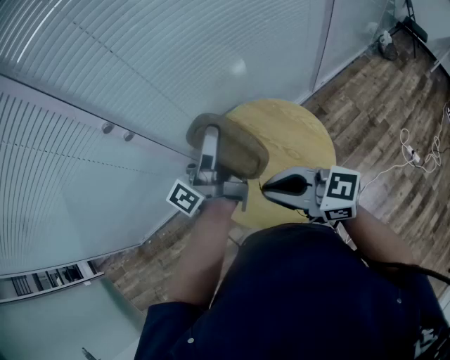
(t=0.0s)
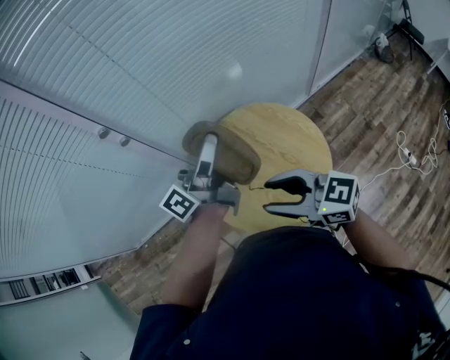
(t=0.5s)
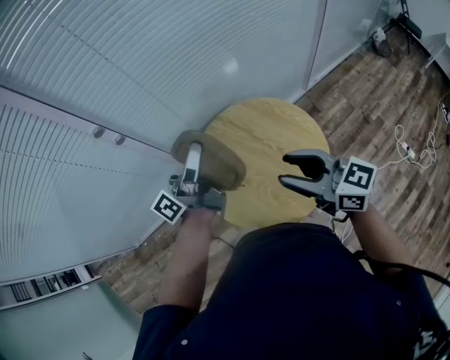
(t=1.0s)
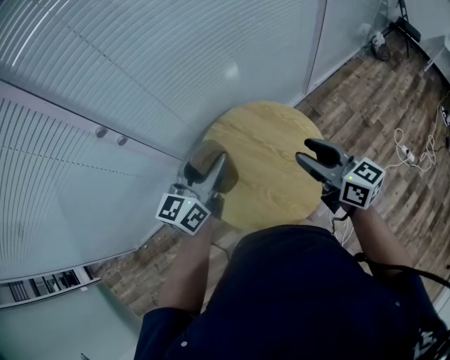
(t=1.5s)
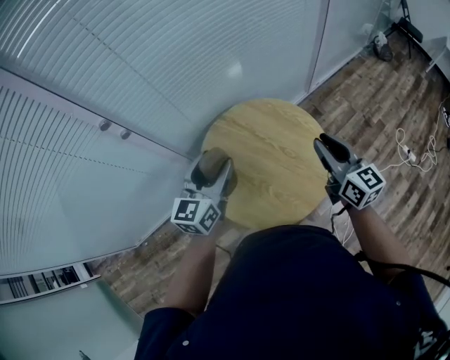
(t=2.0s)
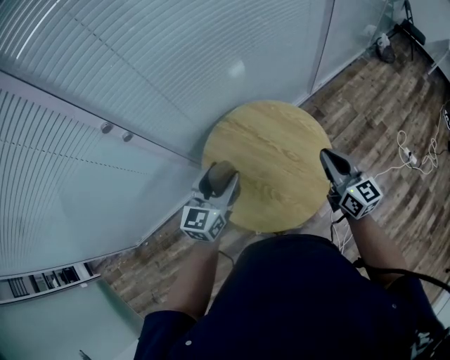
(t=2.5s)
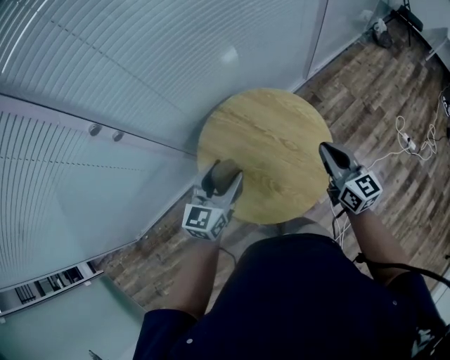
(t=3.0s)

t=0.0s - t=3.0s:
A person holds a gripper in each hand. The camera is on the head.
t=0.0s - t=1.5s: The right gripper moves to the right, about 15 cm, turns by approximately 30 degrees, and opens its fingers. The left gripper is displaced downward by about 10 cm, and tips its fingers downward by roughly 30 degrees.
t=1.5s - t=3.0s: The right gripper heads downward and to the right, covering about 10 cm, and closes up, while the left gripper heads downward, covering approximately 10 cm.

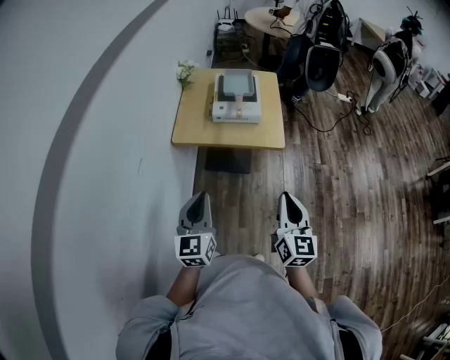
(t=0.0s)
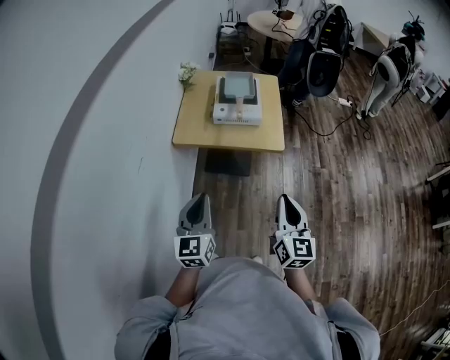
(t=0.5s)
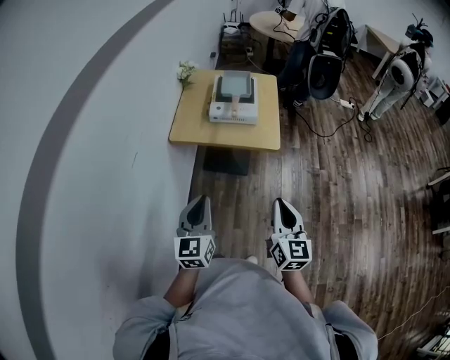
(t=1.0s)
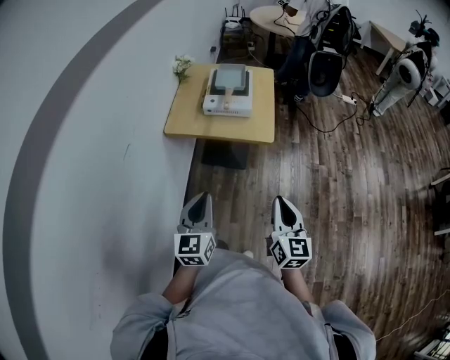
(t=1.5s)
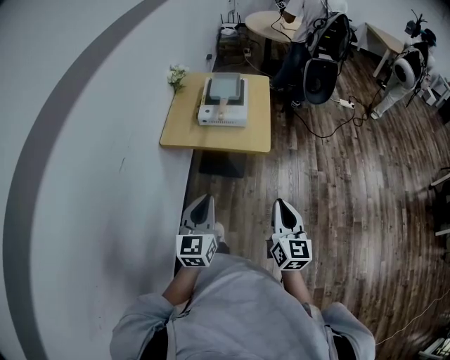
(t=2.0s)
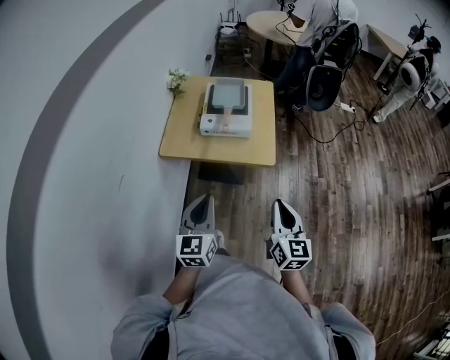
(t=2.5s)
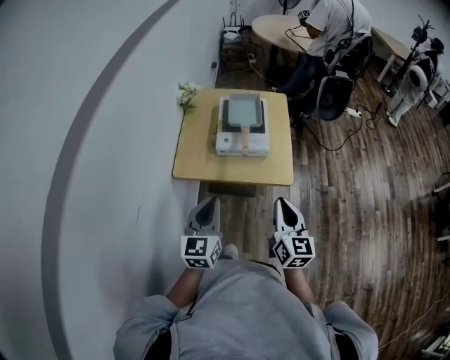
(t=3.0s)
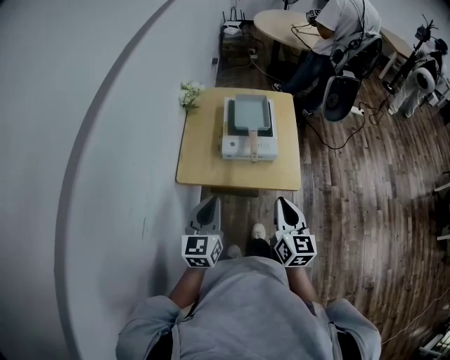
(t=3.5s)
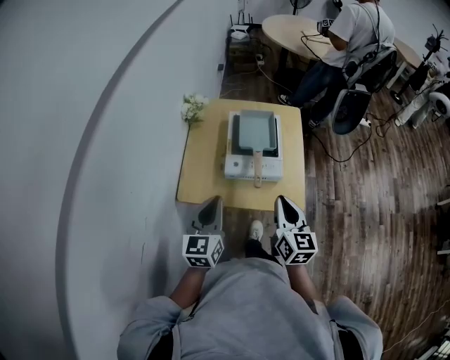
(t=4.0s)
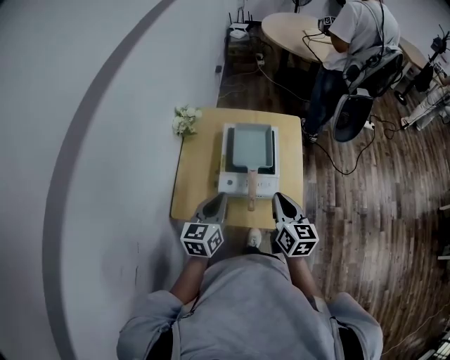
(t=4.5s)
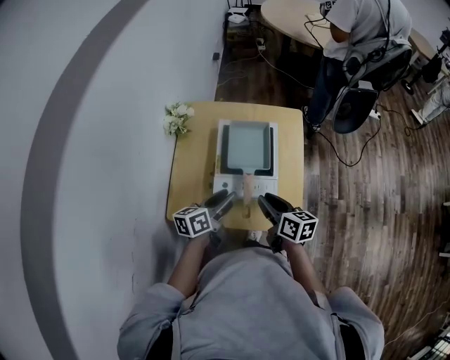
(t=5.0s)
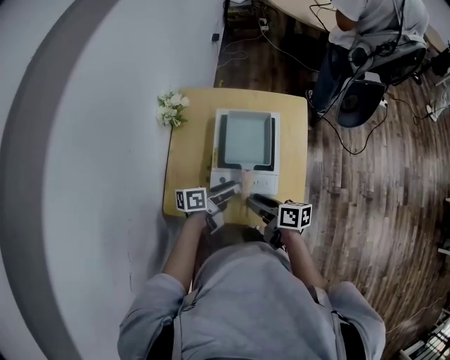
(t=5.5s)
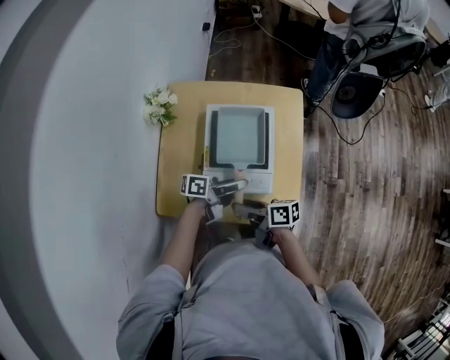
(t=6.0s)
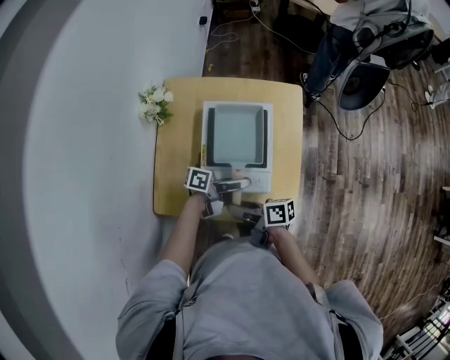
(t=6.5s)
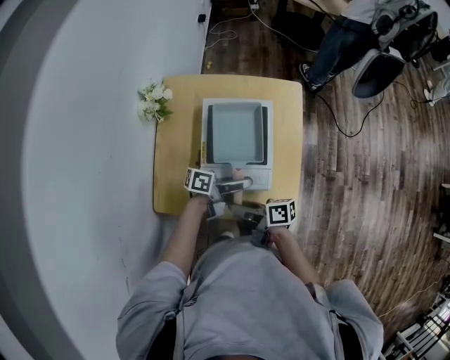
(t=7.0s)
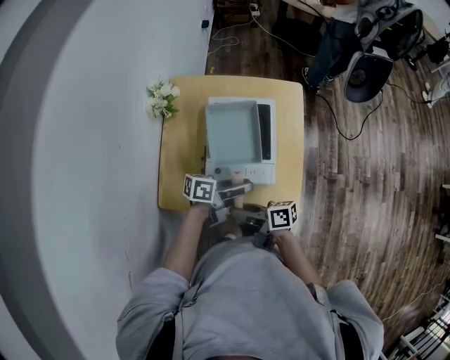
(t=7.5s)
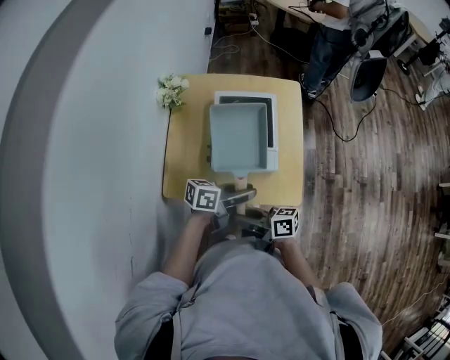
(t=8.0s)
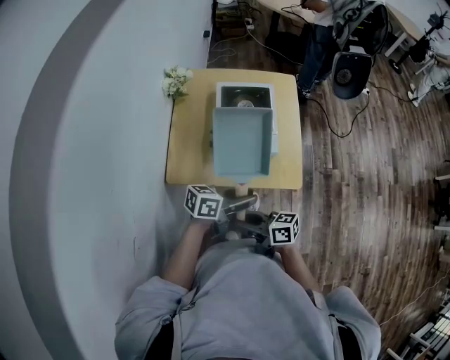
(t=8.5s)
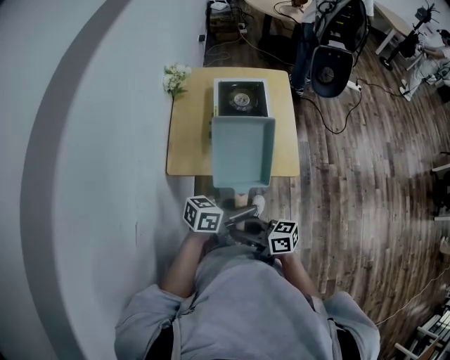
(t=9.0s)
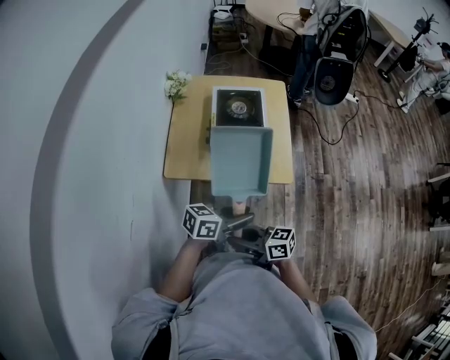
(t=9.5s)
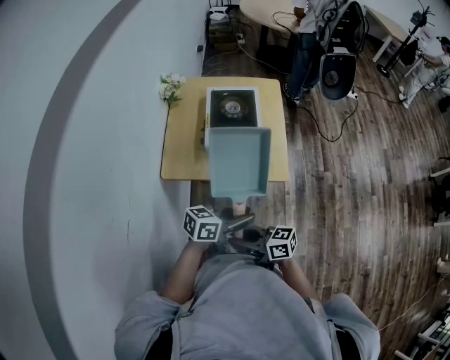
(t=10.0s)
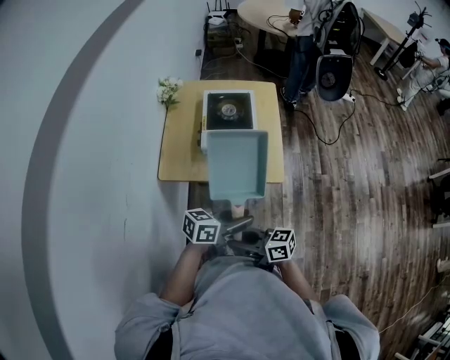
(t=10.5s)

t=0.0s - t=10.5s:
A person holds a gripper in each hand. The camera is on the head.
t=0.0s - t=2.0s: Both grippers move to the right, some 10 cm.
t=2.0s - t=4.0s: Both grippers move forward and to the left, some 35 cm.
t=4.0s - t=6.5s: The left gripper moves about 30 cm, rotates some 90 degrees, and opens; the right gripper shifts approximately 15 cm downward, rotates roughly 80 degrees, and opens.
t=6.5s - t=8.5s: The right gripper changes place by approximately 20 cm, and turns by about 20 degrees. Meanwhile the left gripper ends up some 25 cm from where it was, and rotates roughly 30 degrees.
t=8.5s - t=10.5s: The left gripper ends up some 15 cm from where it was; the right gripper moves roughly 15 cm.

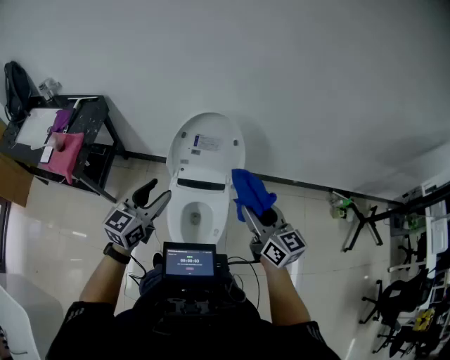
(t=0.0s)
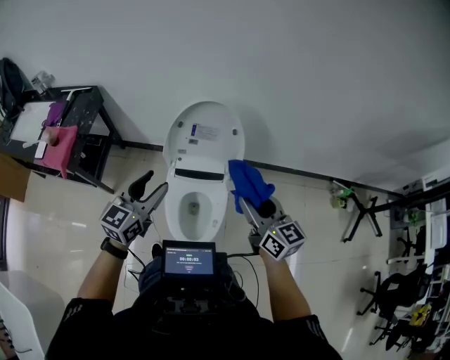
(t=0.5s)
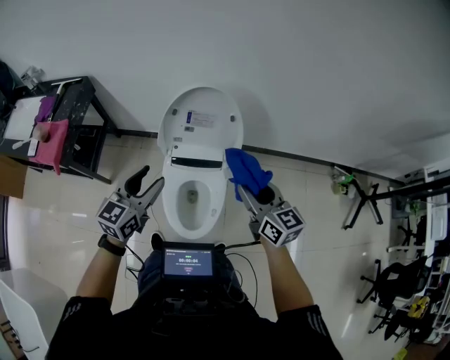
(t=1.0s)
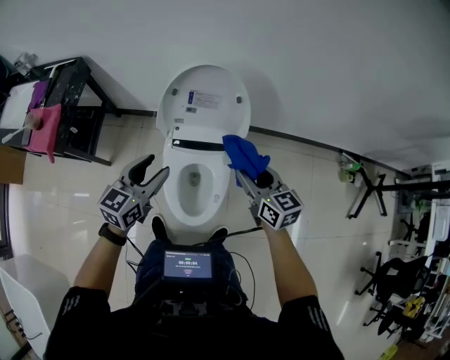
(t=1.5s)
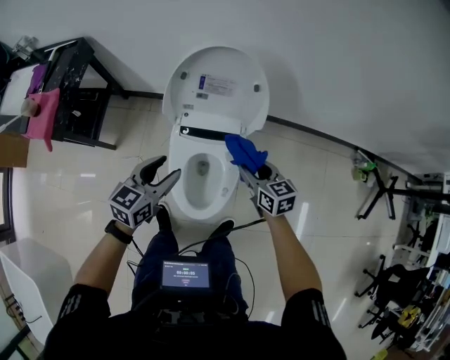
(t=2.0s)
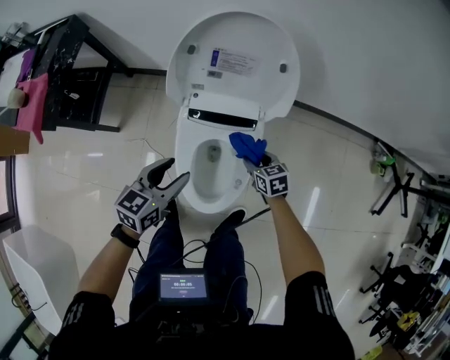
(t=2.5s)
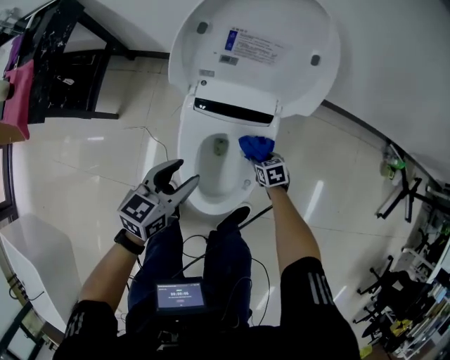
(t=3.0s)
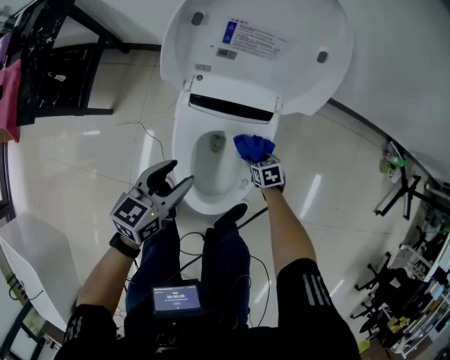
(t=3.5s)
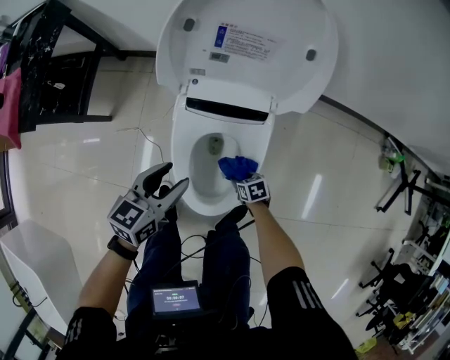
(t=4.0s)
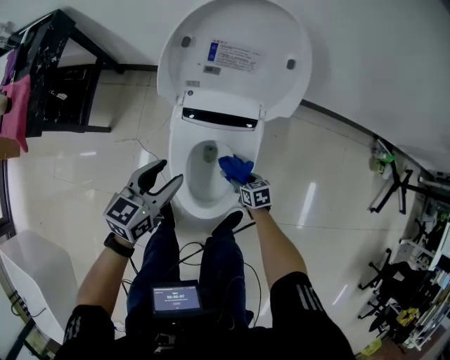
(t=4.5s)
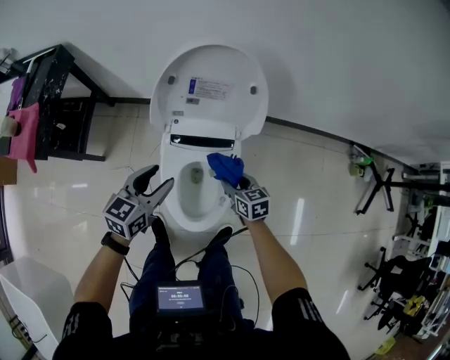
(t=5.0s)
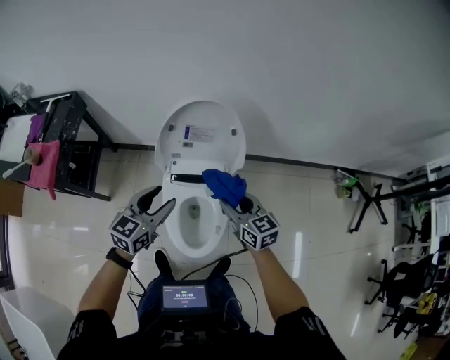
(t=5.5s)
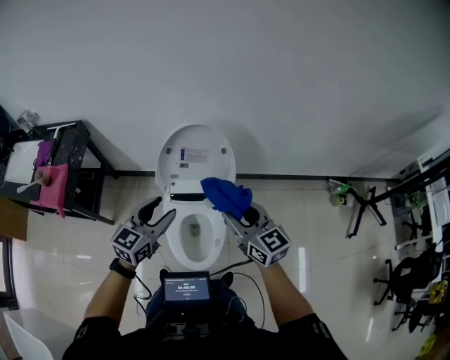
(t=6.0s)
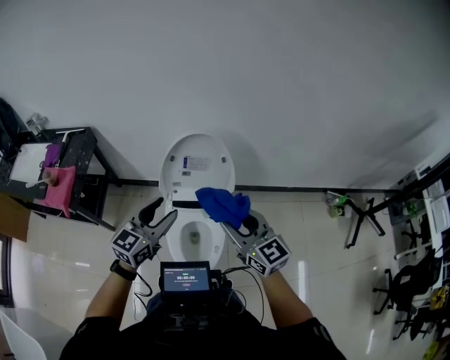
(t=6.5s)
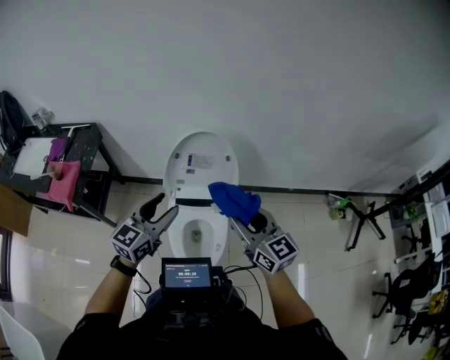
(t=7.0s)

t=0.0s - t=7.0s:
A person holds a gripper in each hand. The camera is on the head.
t=0.0s - t=2.0s: The right gripper heads downward, covering some 30 cm, and swivels approximately 30 degrees. The left gripper travels downward by some 20 cm.
t=2.0s - t=3.5s: The left gripper is displaced downward by some 20 cm. The right gripper moves downward, some 40 cm, and tilts its fingers approximately 40 degrees downward.
t=3.5s - t=5.0s: The right gripper goes about 25 cm upward, and changes its angle by some 30 degrees; the left gripper moves upward, roughly 10 cm.
t=5.0s - t=7.0s: The right gripper is displaced upward by roughly 50 cm, and tilts its fingers roughly 40 degrees upward. The left gripper moves upward, approximately 30 cm, and turns by some 20 degrees.

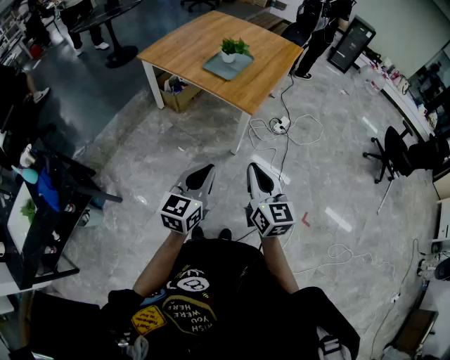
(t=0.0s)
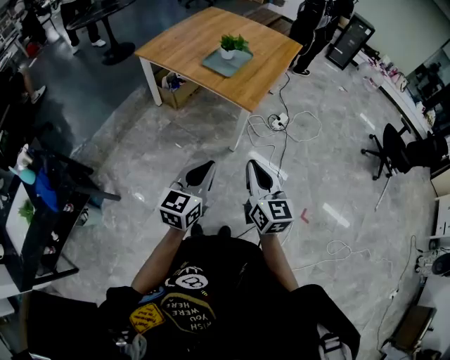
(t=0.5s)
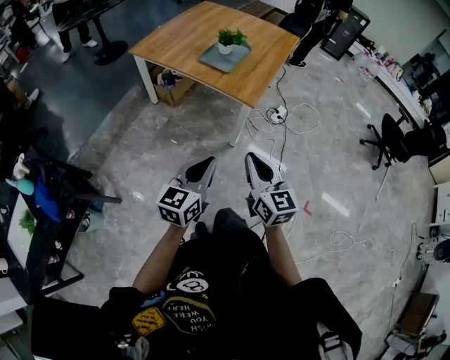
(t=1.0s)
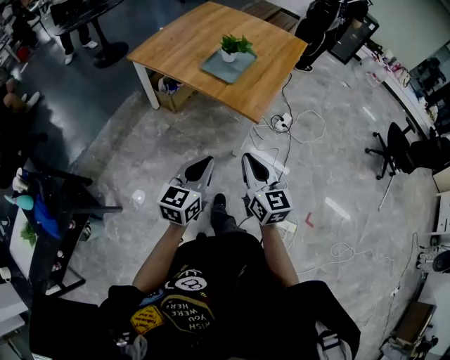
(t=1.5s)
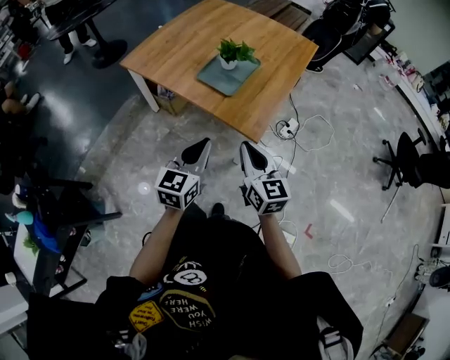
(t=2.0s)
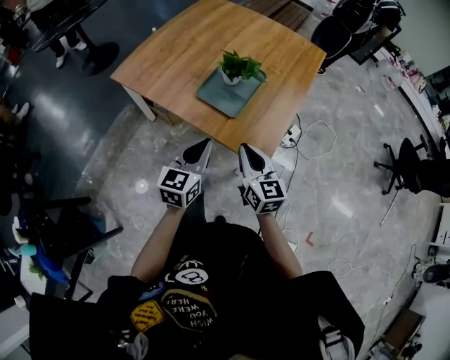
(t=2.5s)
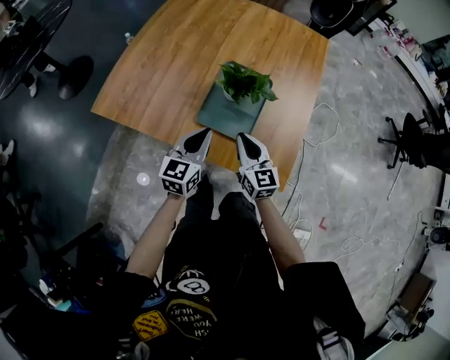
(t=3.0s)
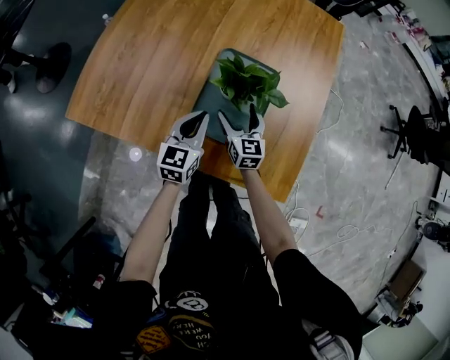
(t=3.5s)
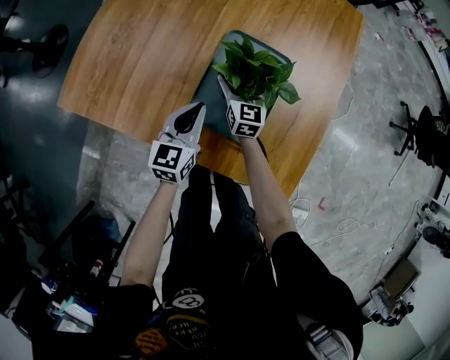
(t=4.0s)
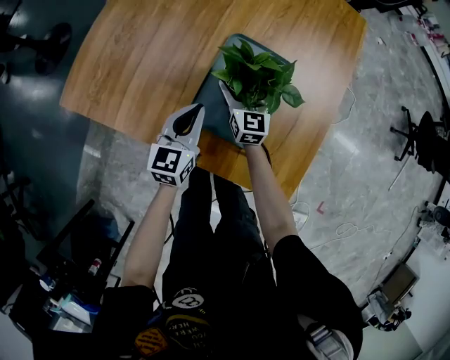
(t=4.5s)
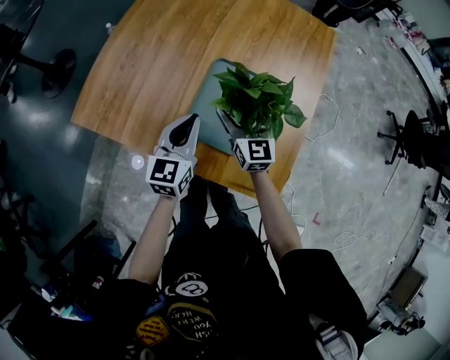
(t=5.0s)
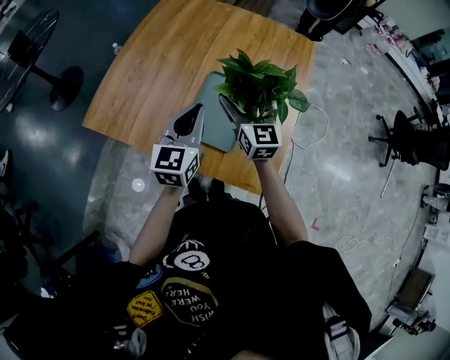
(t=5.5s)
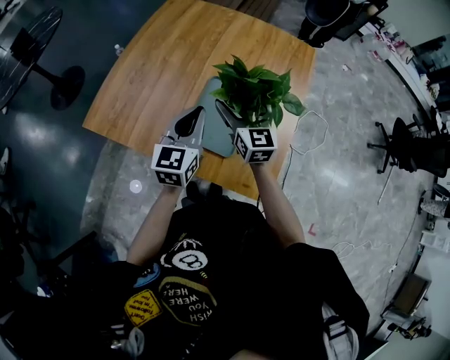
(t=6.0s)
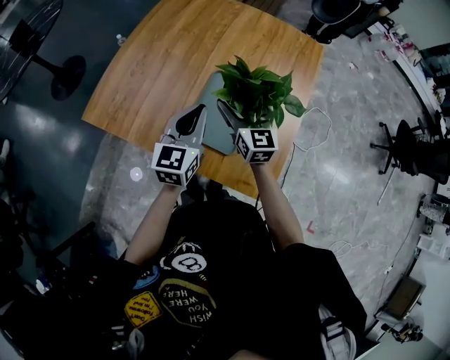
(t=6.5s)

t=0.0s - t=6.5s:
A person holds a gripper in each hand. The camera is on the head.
t=0.0s - t=2.0s: Both grippers move forward, some 35 cm.
t=2.0s - t=4.5s: The pair of grippers is taken forward, approximately 60 cm. Both grippers travel together downward, about 25 cm. The right gripper opens up.
t=4.5s - t=6.5s: The two grippers go approximately 25 cm upward.
